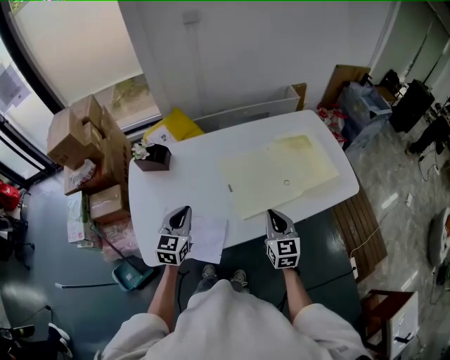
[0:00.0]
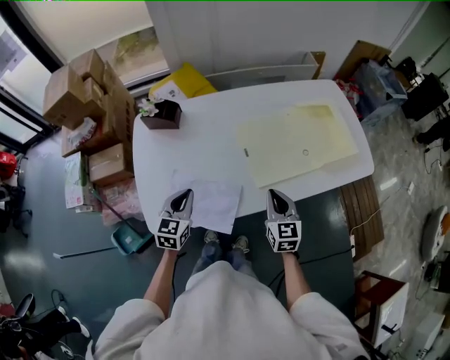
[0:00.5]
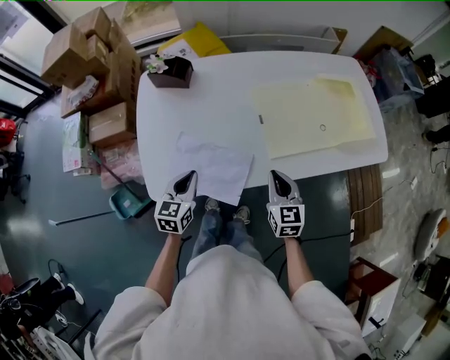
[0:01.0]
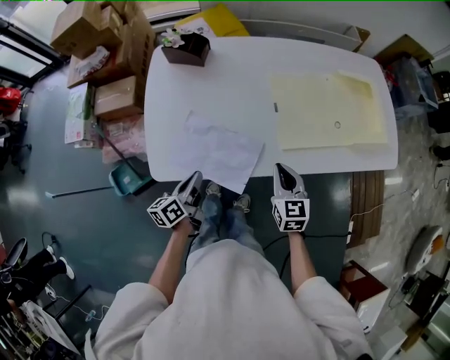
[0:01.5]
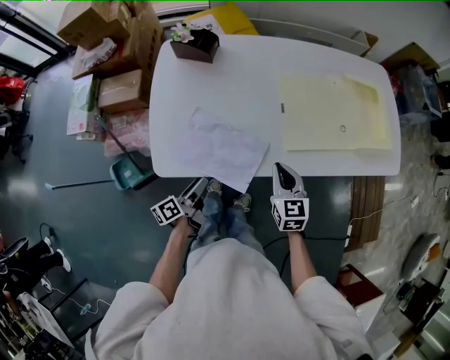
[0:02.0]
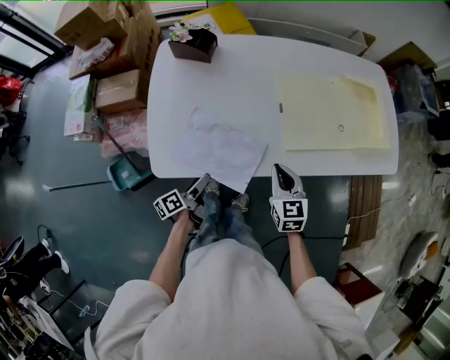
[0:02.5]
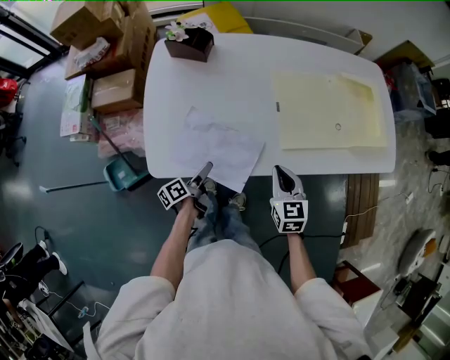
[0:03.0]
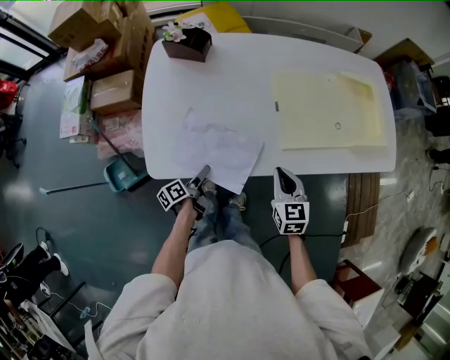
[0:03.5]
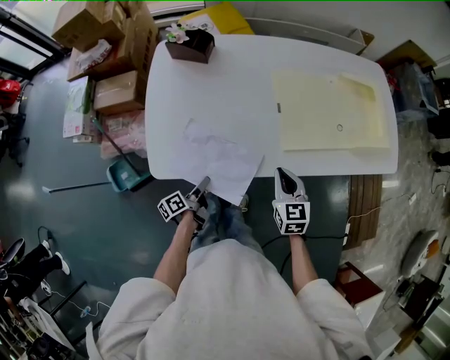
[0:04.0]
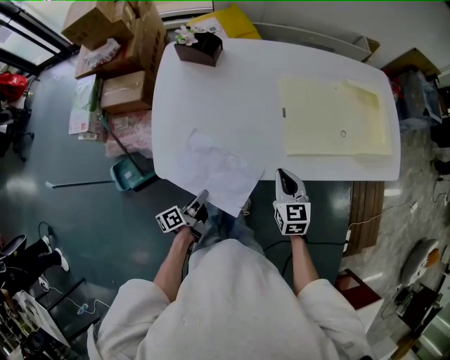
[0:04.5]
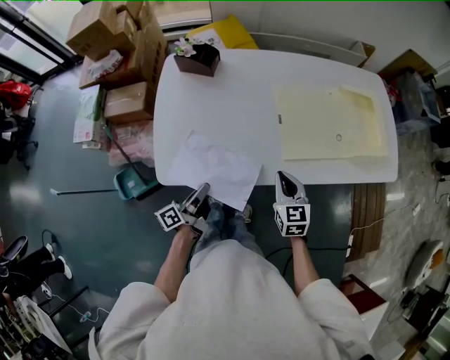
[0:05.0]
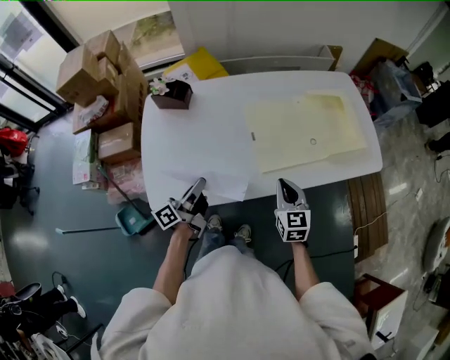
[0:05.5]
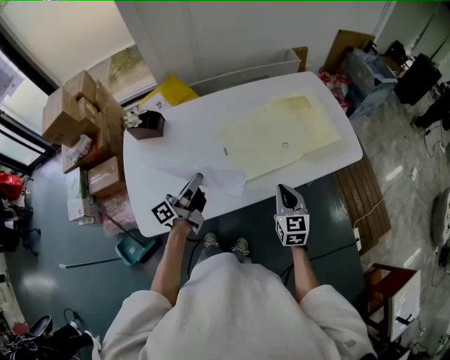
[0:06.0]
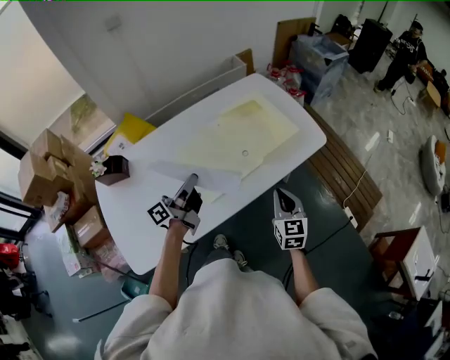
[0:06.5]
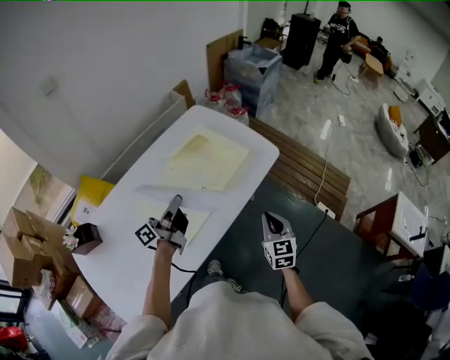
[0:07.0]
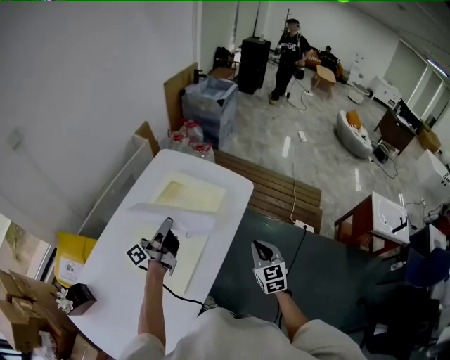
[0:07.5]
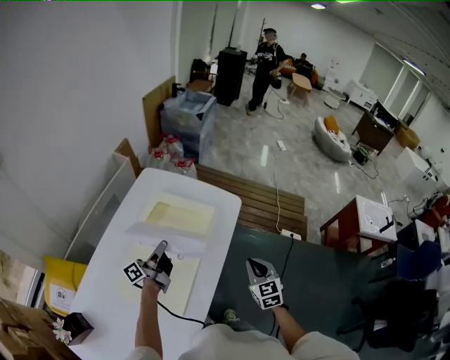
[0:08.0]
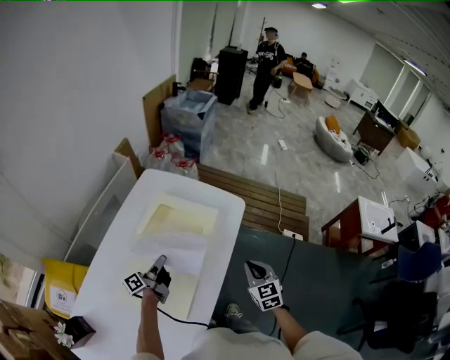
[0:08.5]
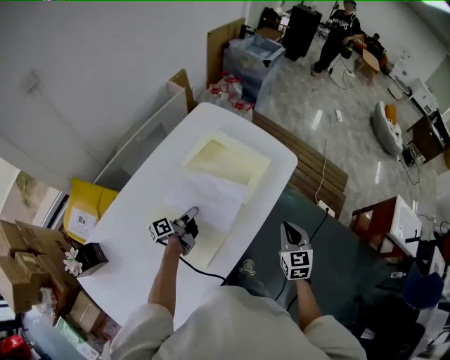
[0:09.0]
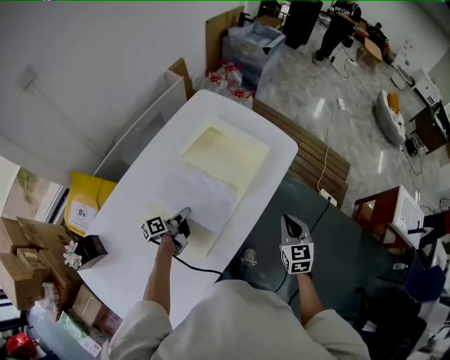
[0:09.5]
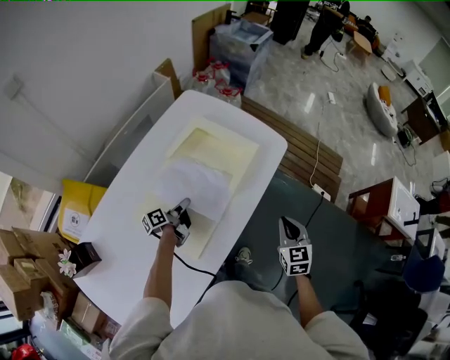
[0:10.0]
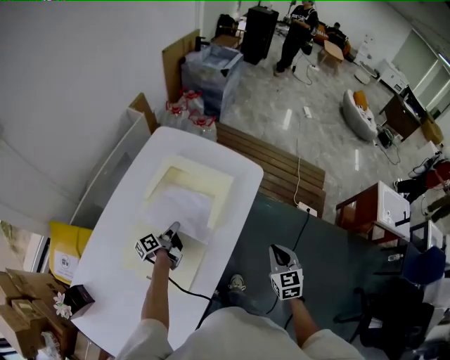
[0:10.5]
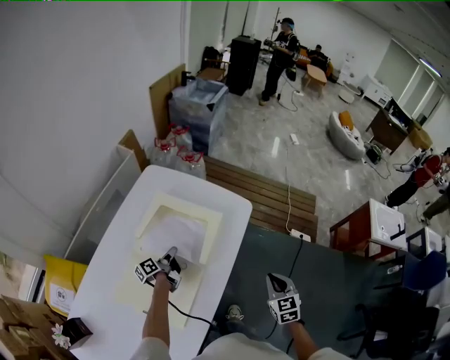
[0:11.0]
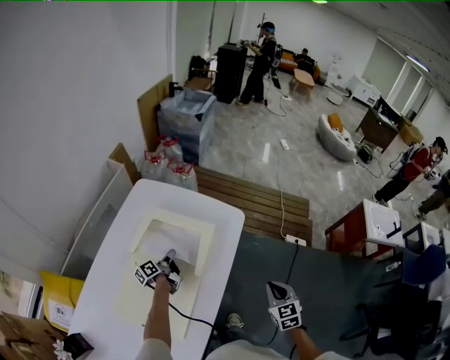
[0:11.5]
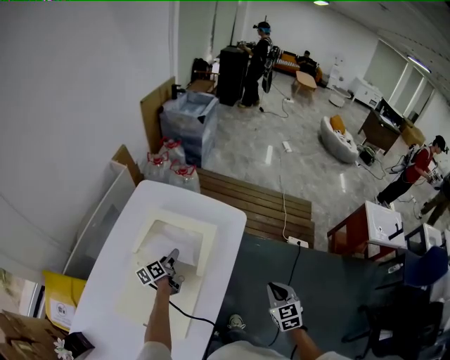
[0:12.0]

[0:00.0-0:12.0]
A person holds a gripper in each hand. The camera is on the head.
0:00.0 to 0:02.0: The right gripper travels to the left, downward and backward by about 15 cm. Meanwhile the left gripper shifts about 25 cm downward and backward, twists roughly 80 degrees counterclockwise, seen from behind, and opens up.
0:02.0 to 0:04.0: The left gripper is displaced downward by roughly 5 cm.
0:04.0 to 0:06.0: The left gripper moves upward, forward and to the right, roughly 35 cm, points its fingers roughly 30 degrees further upward, and closes up. The right gripper goes roughly 15 cm to the right and upward, and swivels approximately 20 degrees.
0:06.0 to 0:08.0: The left gripper moves some 40 cm, and changes its angle by some 50 degrees. The right gripper shifts by about 20 cm, and swivels approximately 40 degrees.
0:08.0 to 0:10.0: The left gripper moves downward, some 20 cm, and tips its fingers downward by approximately 30 degrees.
0:10.0 to 0:12.0: The left gripper is displaced forward by about 15 cm, and swivels about 20 degrees, while the right gripper goes approximately 5 cm to the right.

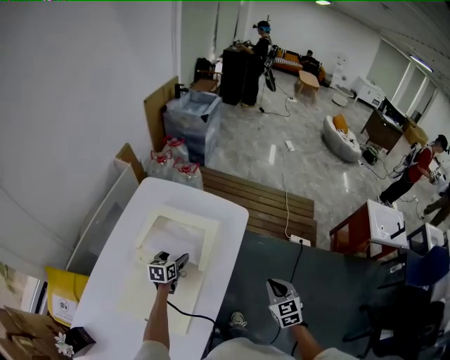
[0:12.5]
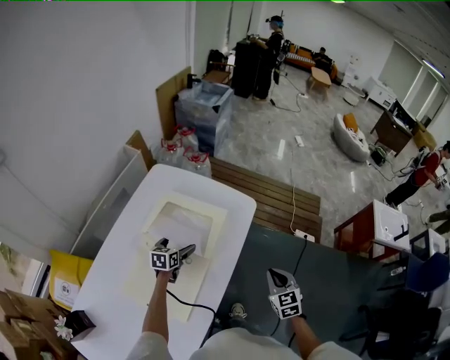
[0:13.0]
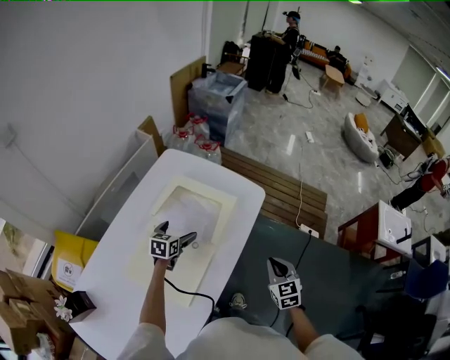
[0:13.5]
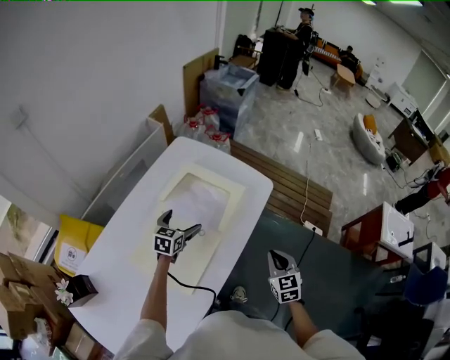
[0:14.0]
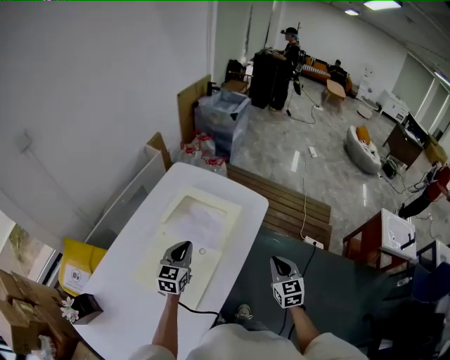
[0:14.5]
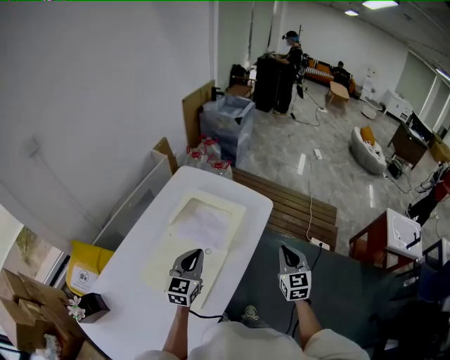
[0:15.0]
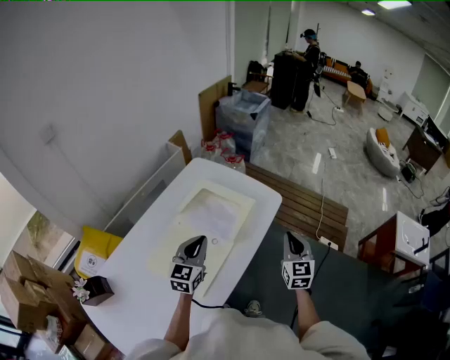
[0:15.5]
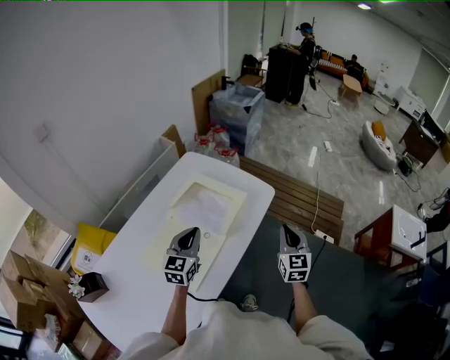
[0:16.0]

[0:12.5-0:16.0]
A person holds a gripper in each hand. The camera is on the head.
0:12.5 to 0:14.5: The left gripper travels upward and backward by roughly 20 cm, rotates about 30 degrees, and closes its fingers; the right gripper travels to the left by some 5 cm.
0:14.5 to 0:16.0: Both grippers move upward, about 5 cm.

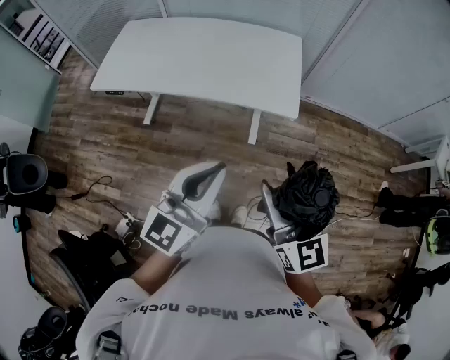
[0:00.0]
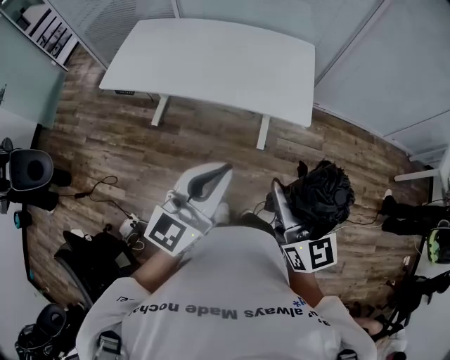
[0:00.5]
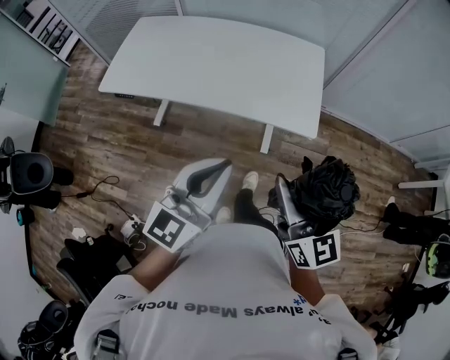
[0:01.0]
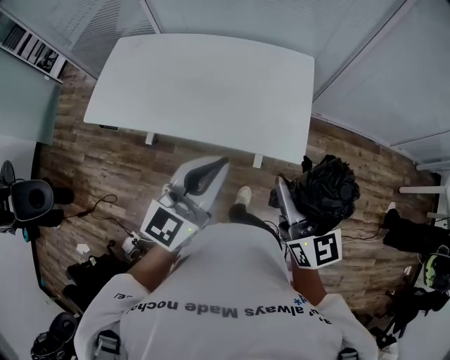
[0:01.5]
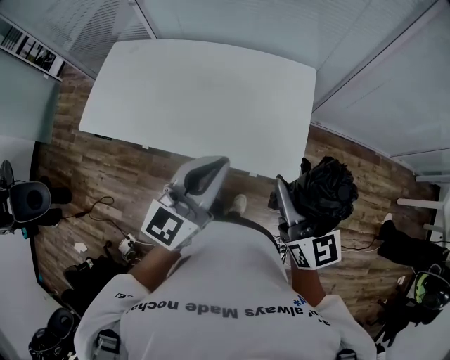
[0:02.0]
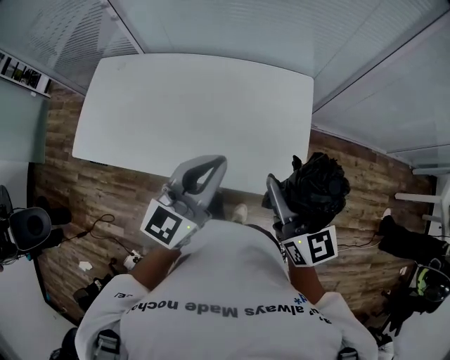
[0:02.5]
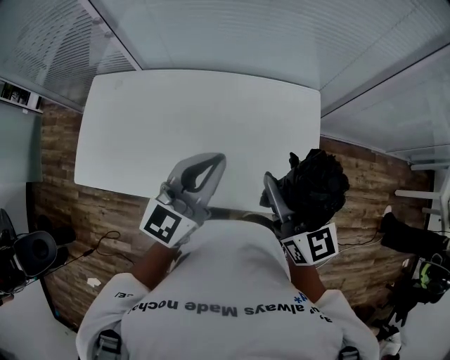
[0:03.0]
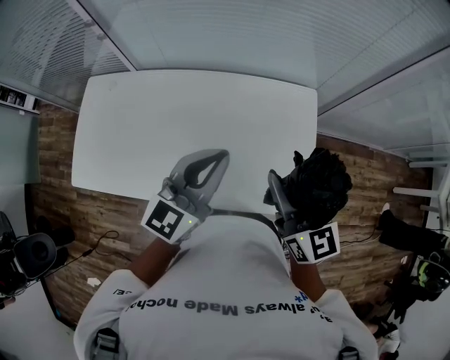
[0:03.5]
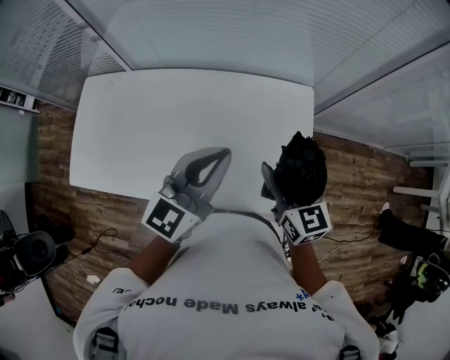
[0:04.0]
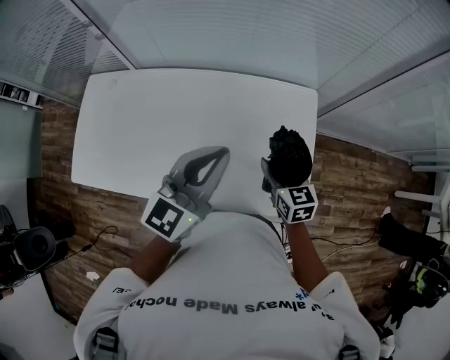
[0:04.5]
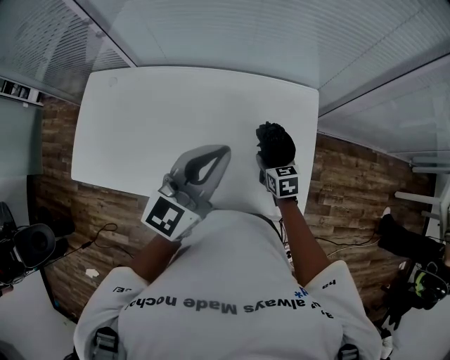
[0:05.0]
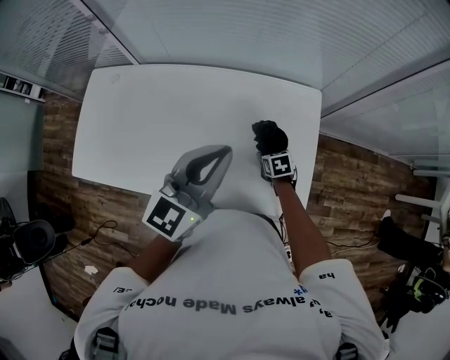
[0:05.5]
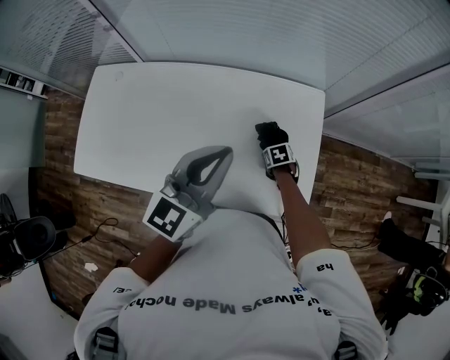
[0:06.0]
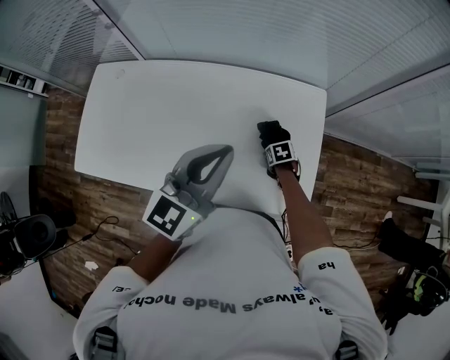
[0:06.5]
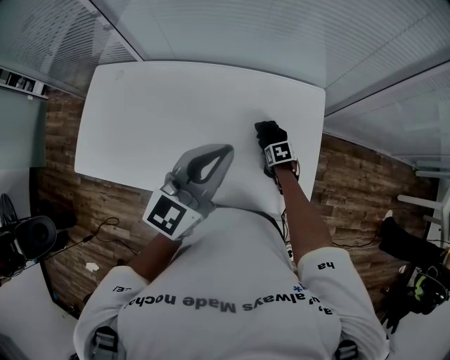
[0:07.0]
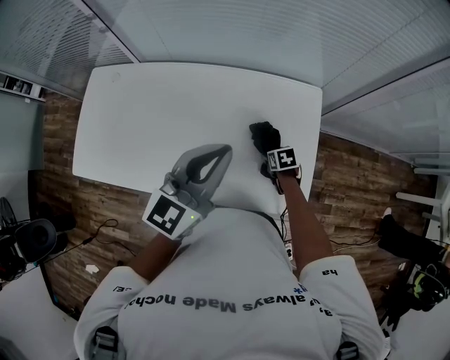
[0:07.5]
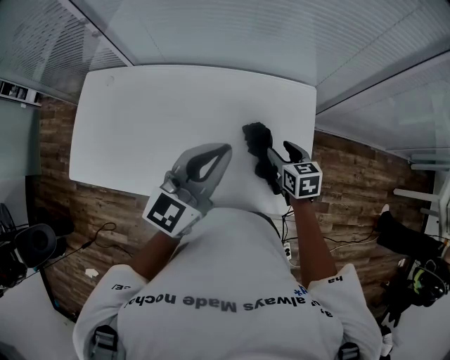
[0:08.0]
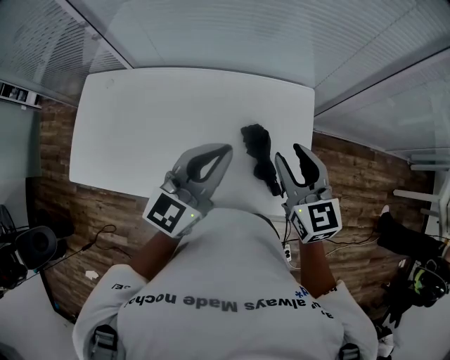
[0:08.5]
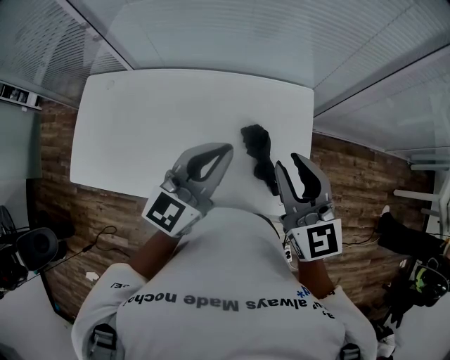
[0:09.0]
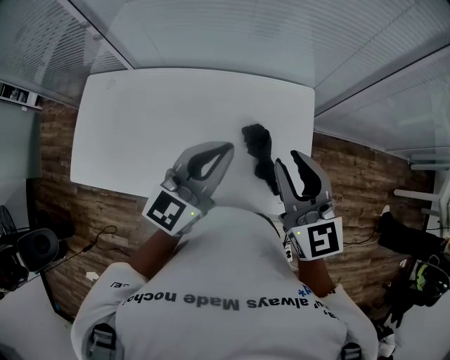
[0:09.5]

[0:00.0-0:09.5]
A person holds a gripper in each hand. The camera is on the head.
0:00.0 to 0:02.0: The pair of grippers is taken forward, roughly 40 cm.
0:02.0 to 0:04.0: The right gripper shifts about 30 cm forward and to the left, while the left gripper heads forward, covering about 25 cm.
0:04.0 to 0:05.5: The right gripper moves downward, approximately 30 cm, and tilts its fingers roughly 40 degrees downward.
0:05.5 to 0:07.5: There are only small adjustments of the grippers.
0:07.5 to 0:09.5: The right gripper is displaced upward by approximately 40 cm, angles its fingers upward, by roughly 60 degrees, and closes its fingers.

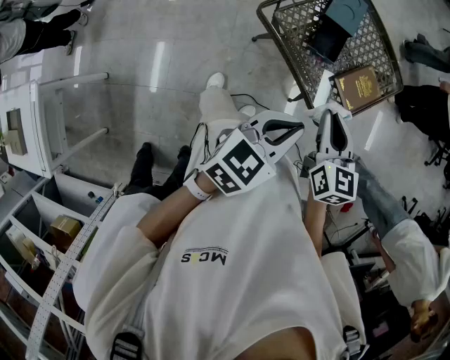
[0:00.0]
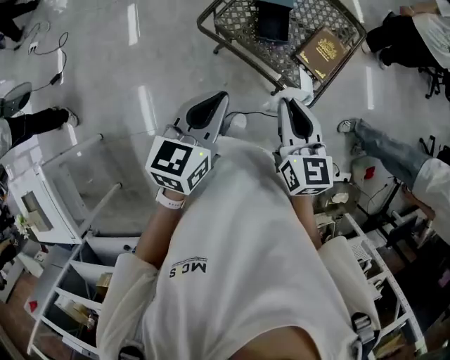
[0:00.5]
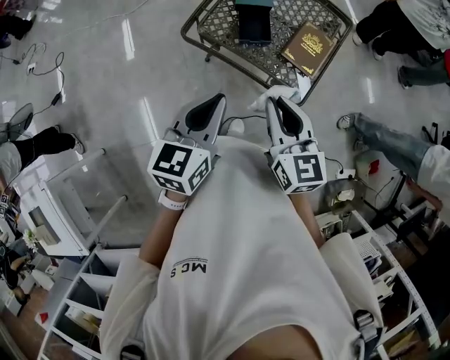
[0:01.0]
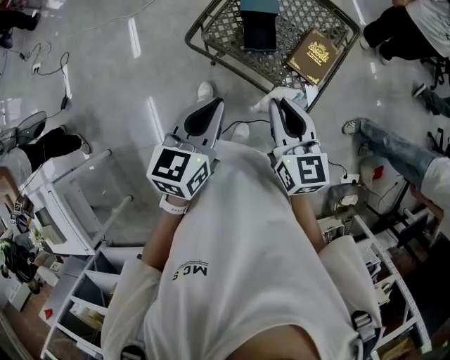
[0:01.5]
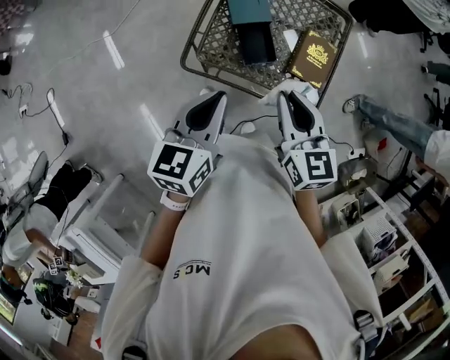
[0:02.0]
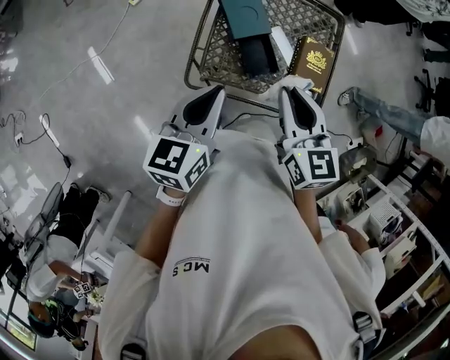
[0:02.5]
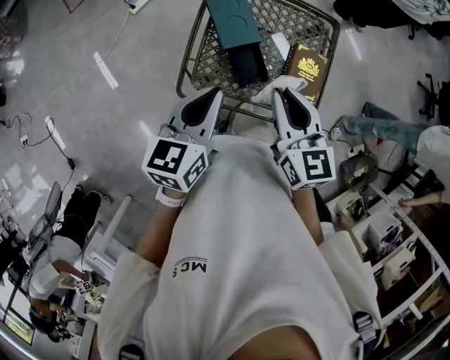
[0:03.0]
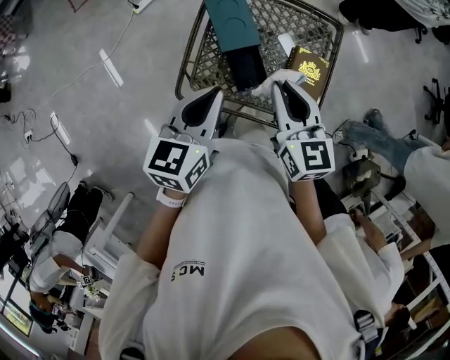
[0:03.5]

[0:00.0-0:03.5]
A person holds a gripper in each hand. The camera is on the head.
0:00.0 to 0:02.0: The left gripper goes approximately 25 cm forward and to the left; the right gripper heads forward, covering some 15 cm.
0:02.0 to 0:03.5: Both grippers travel together forward, roughly 10 cm.
